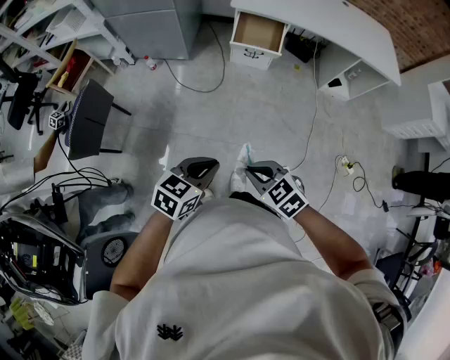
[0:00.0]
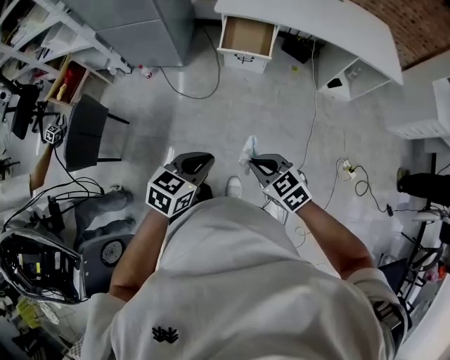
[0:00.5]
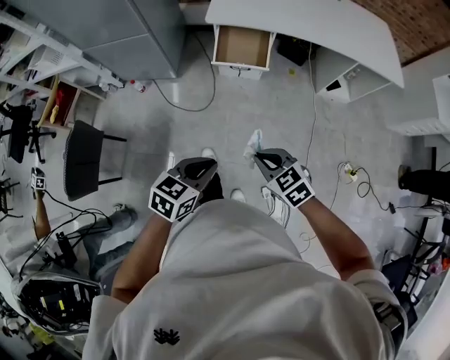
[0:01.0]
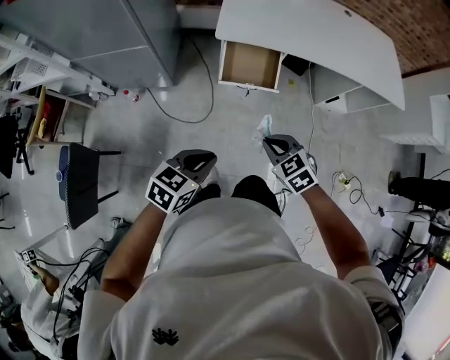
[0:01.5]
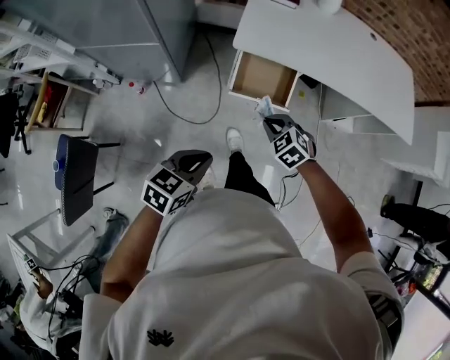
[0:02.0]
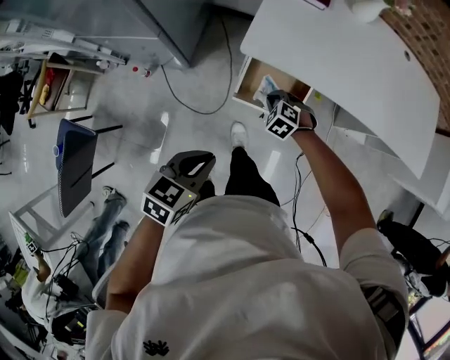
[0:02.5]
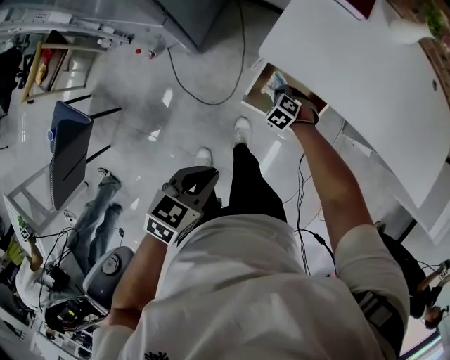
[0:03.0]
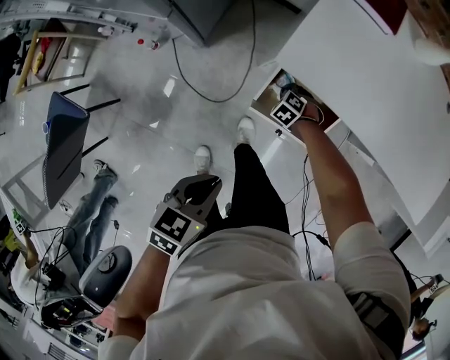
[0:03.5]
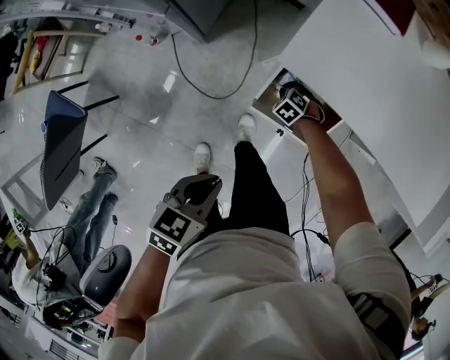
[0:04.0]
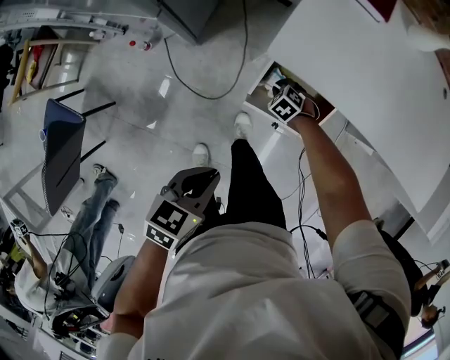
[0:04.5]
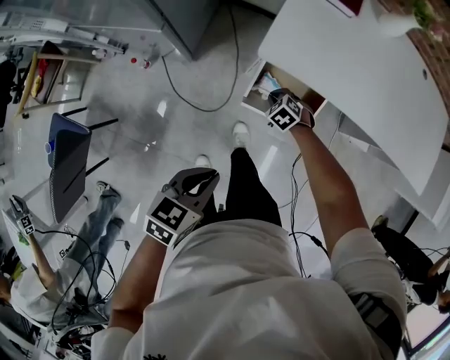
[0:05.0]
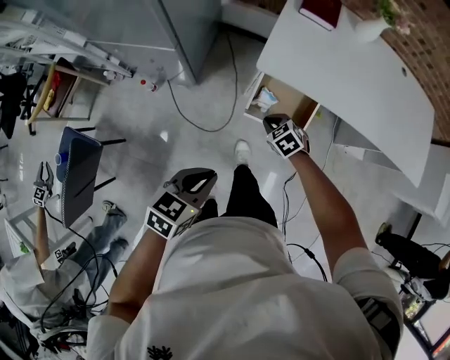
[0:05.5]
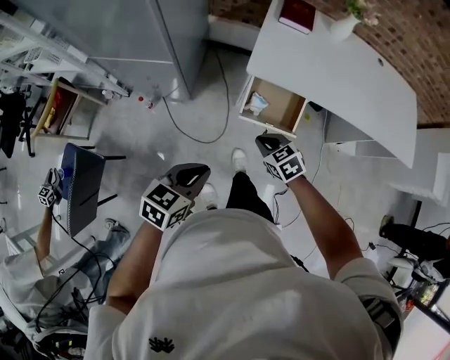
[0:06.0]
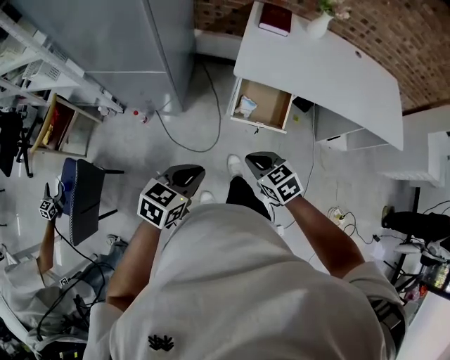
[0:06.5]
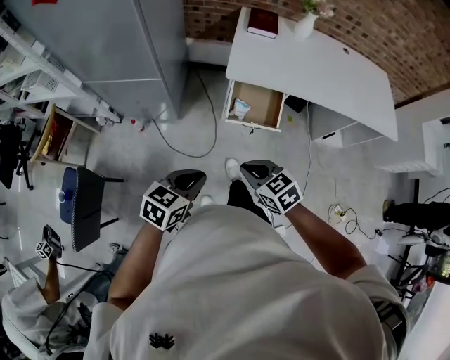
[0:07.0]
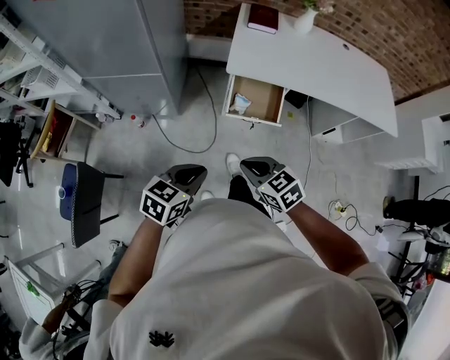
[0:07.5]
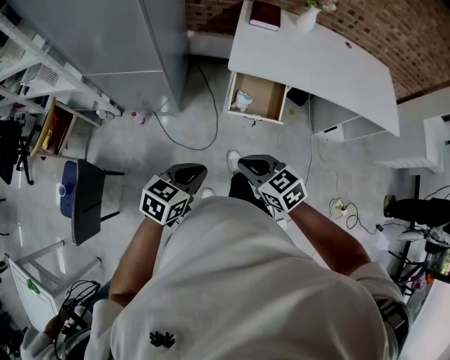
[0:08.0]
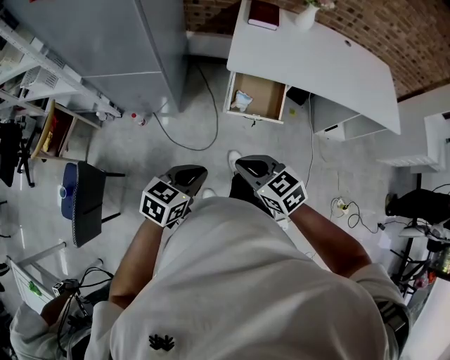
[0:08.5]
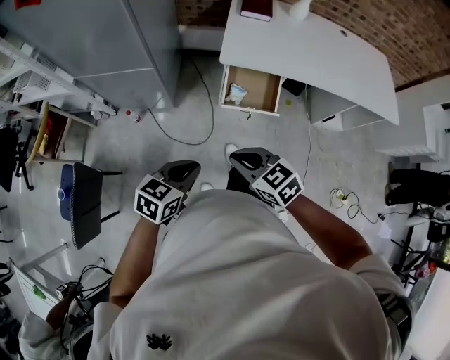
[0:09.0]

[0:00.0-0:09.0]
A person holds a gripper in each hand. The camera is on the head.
0:00.0 to 0:02.0: The two grippers travel together, forward, approximately 60 cm. The right gripper swivels approximately 20 degrees.
0:02.0 to 0:04.5: The left gripper ends up about 25 cm from where it was, and swivels roughly 20 degrees; the right gripper is displaced downward by some 35 cm, and rotates about 20 degrees.
0:04.5 to 0:07.0: The left gripper shifts by approximately 35 cm, and swivels about 30 degrees, while the right gripper goes some 50 cm upward, and points its fingers approximately 30 degrees further upward.
0:07.0 to 0:09.0: The grippers stay close to where they were, moving slightly.

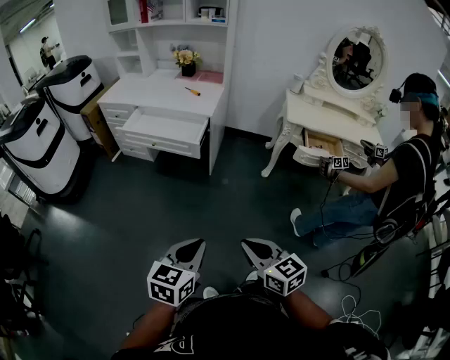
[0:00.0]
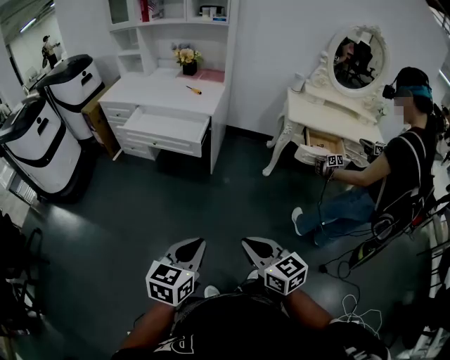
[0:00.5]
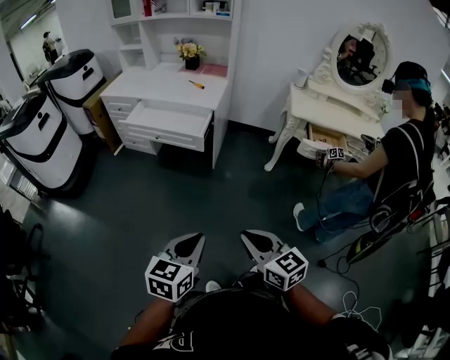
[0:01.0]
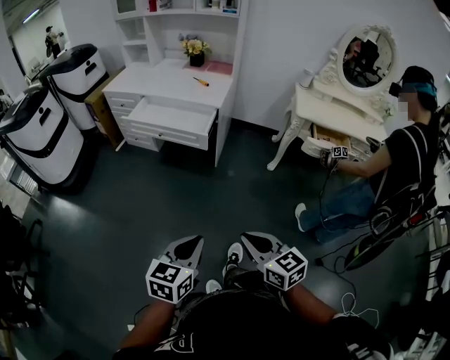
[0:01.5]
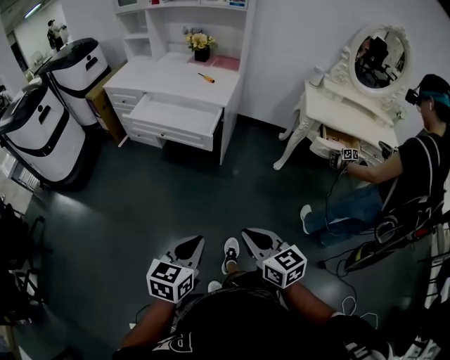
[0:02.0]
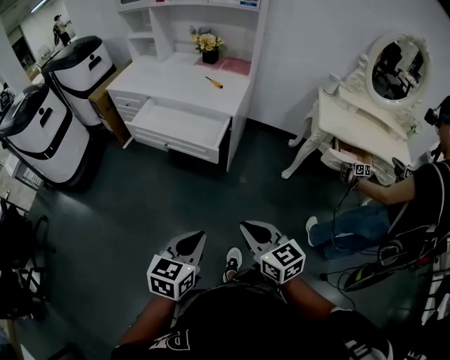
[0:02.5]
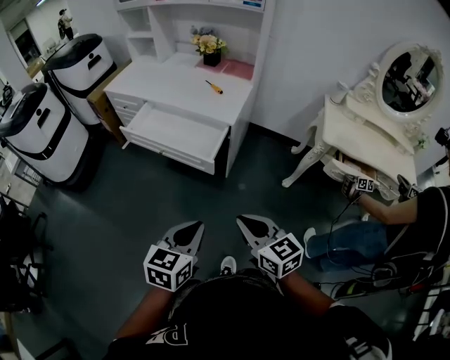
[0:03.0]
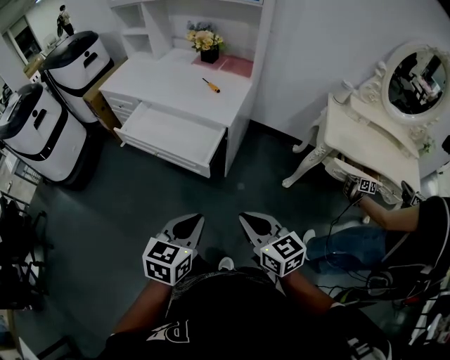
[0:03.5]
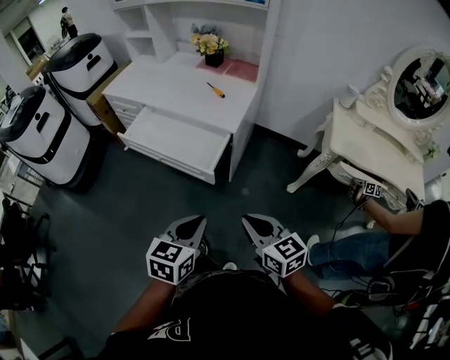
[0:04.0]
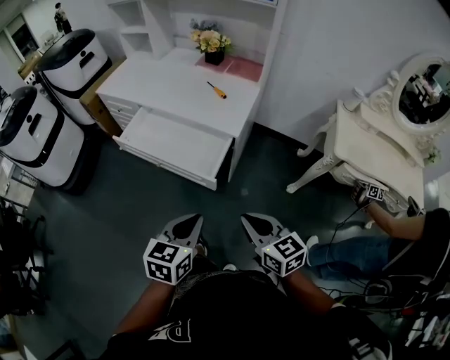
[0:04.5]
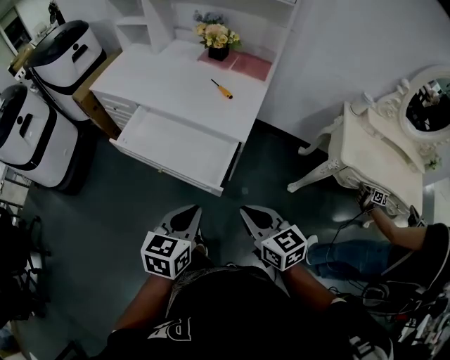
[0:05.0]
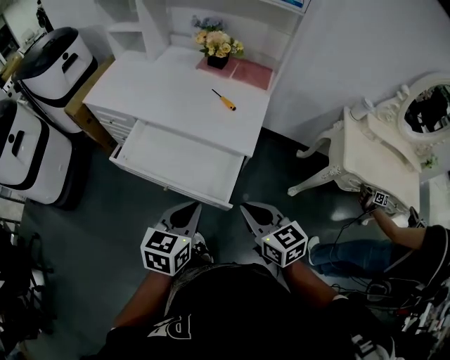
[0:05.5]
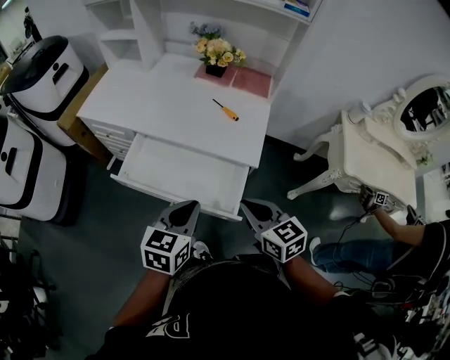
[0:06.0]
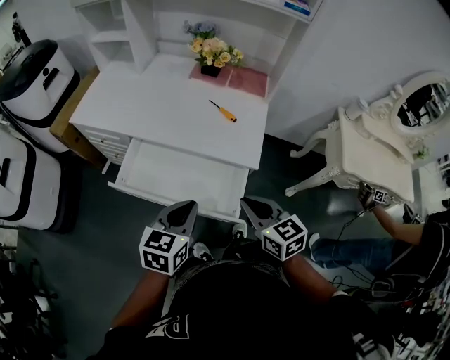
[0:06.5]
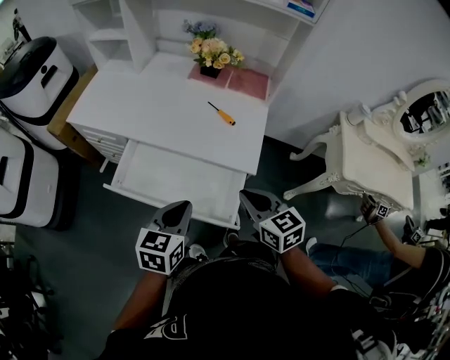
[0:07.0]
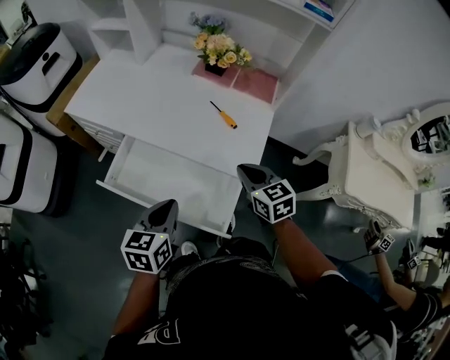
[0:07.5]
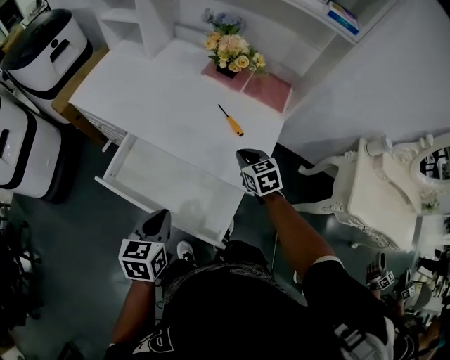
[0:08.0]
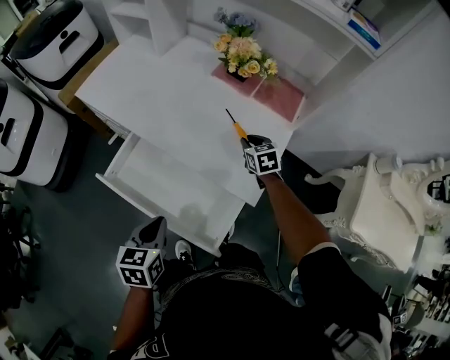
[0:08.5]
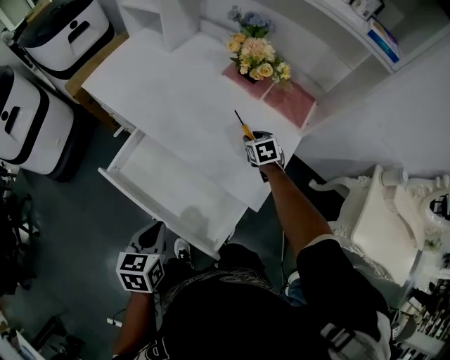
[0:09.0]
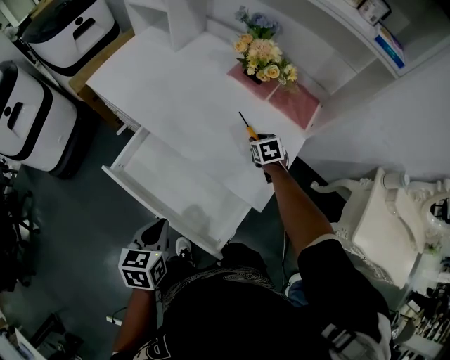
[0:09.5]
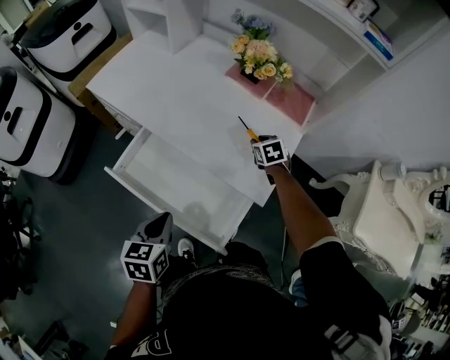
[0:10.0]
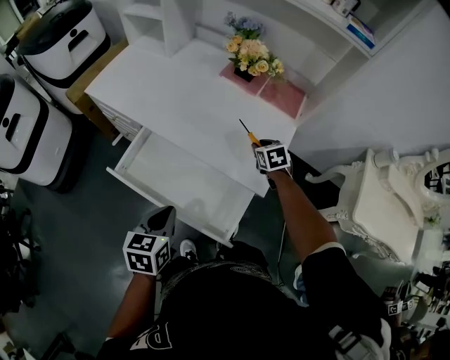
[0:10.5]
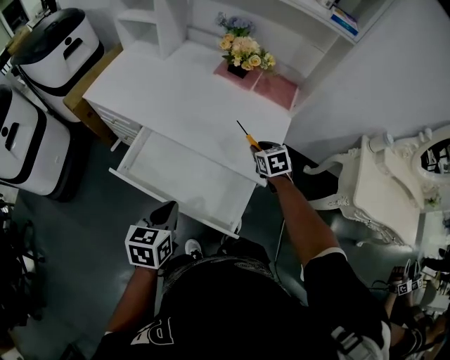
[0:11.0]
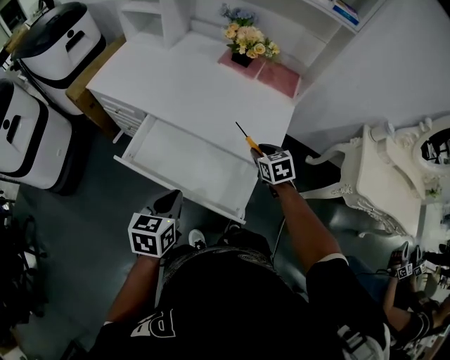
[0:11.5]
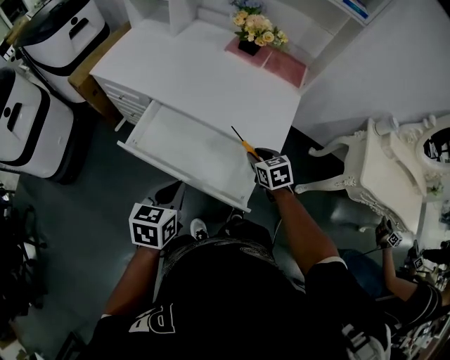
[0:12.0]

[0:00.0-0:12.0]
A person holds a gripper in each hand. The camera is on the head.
0:00.0 to 0:02.0: Both grippers travel together forward, approximately 5 cm.
0:02.0 to 0:04.0: Both grippers travel together forward, some 30 cm.
0:04.0 to 0:06.0: Both grippers move forward and to the left, approximately 35 cm.
0:06.0 to 0:08.0: The right gripper goes about 35 cm forward and downward. Meanwhile the left gripper travels forward and downward by roughly 10 cm, and swivels approximately 20 degrees.
0:08.0 to 0:10.0: The right gripper heads forward and downward, covering approximately 15 cm, and opens its fingers.
0:10.0 to 0:12.0: The left gripper travels backward by about 5 cm; the right gripper goes some 25 cm backward.

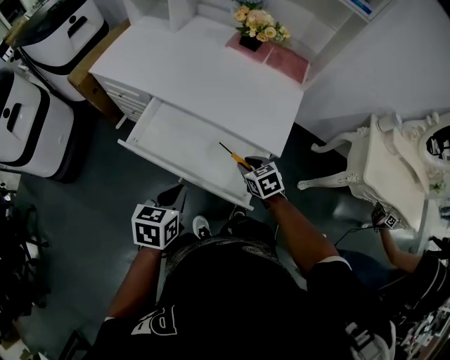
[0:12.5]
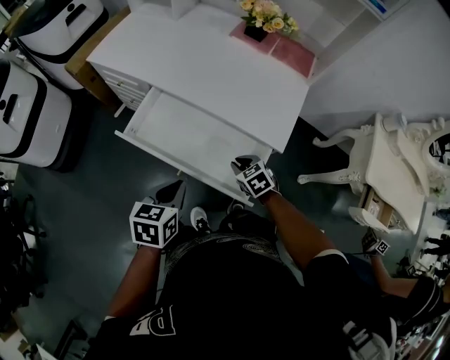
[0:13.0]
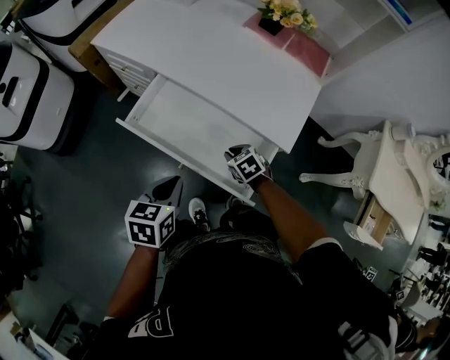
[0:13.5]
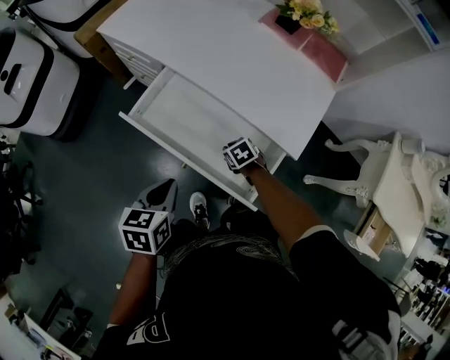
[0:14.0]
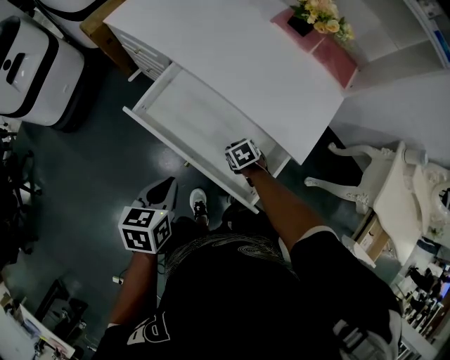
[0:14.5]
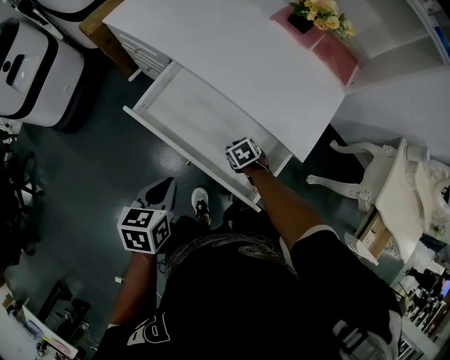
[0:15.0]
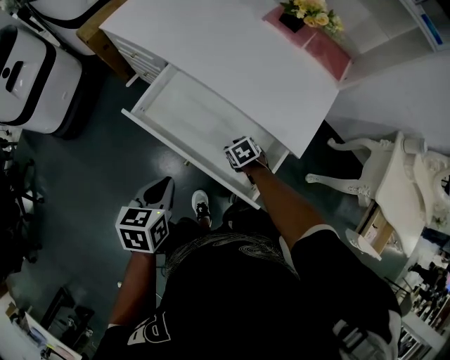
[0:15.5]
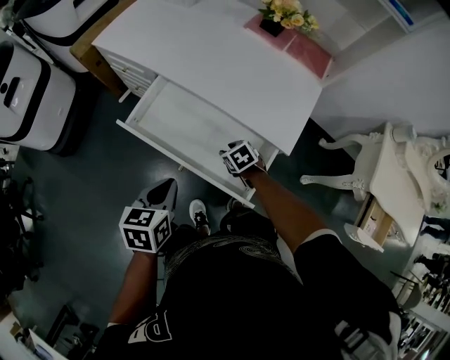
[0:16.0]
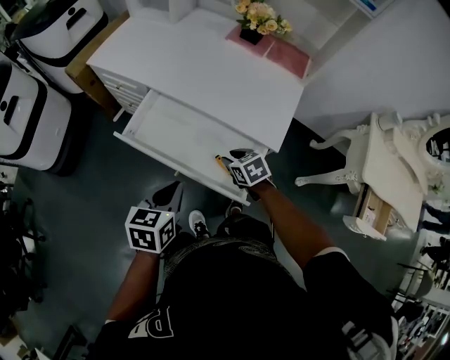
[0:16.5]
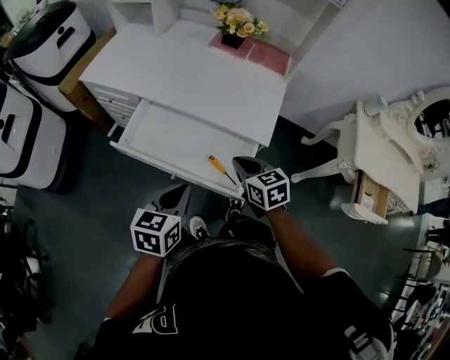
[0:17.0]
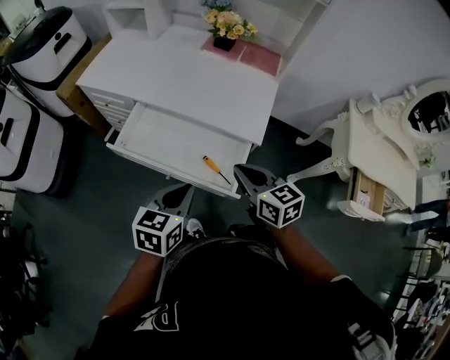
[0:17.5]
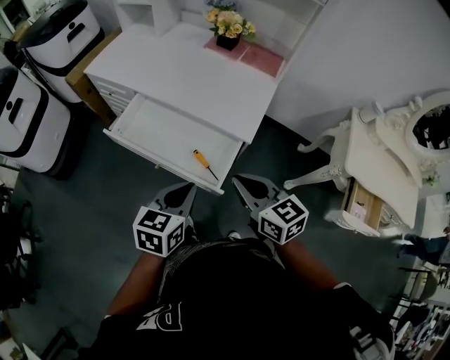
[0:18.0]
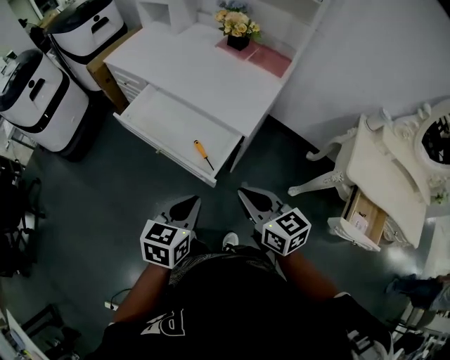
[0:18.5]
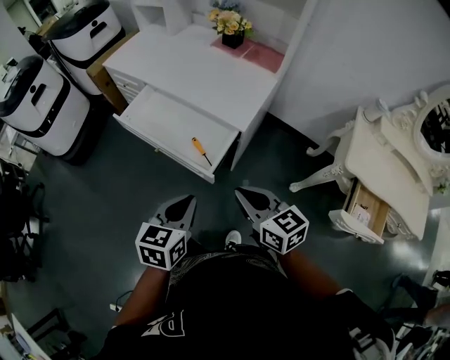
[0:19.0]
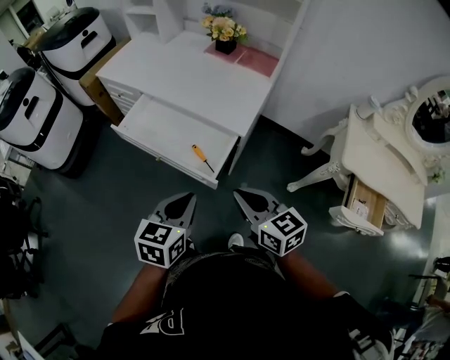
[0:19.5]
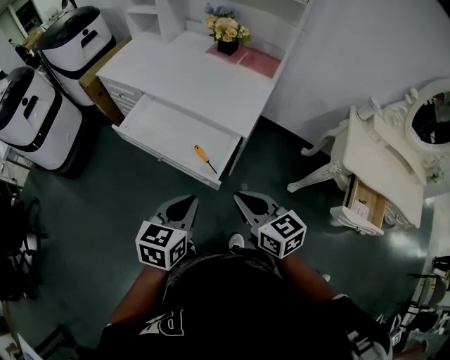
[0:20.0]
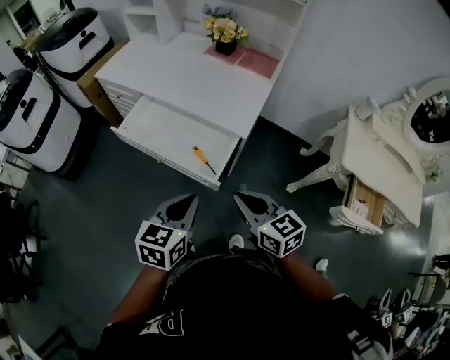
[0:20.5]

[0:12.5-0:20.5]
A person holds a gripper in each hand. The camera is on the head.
0:12.5 to 0:14.5: The left gripper moves about 5 cm. The right gripper shifts about 20 cm downward and to the left, and swivels approximately 20 degrees.
0:14.5 to 0:16.5: The left gripper ends up roughly 5 cm from where it was. Meanwhile the right gripper travels upward by roughly 15 cm.
0:16.5 to 0:18.5: The left gripper goes approximately 25 cm to the right and backward. The right gripper travels backward, upward and to the right by about 35 cm, angles its fingers upward, by some 40 degrees, and closes.
0:18.5 to 0:20.5: There are only small adjustments of the grippers.
